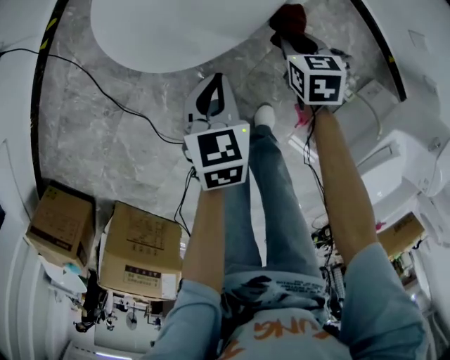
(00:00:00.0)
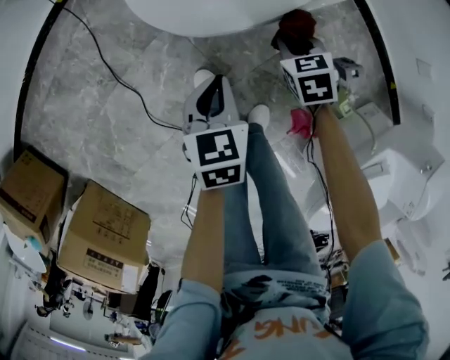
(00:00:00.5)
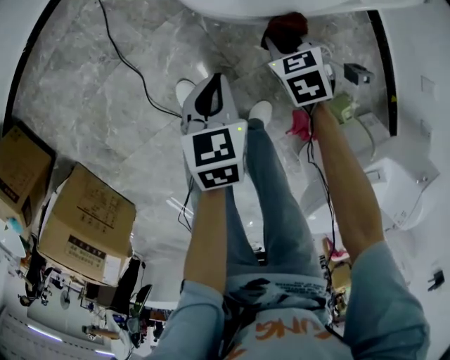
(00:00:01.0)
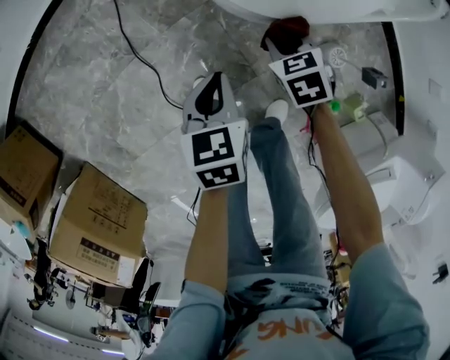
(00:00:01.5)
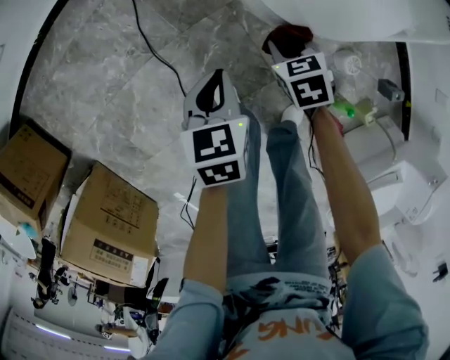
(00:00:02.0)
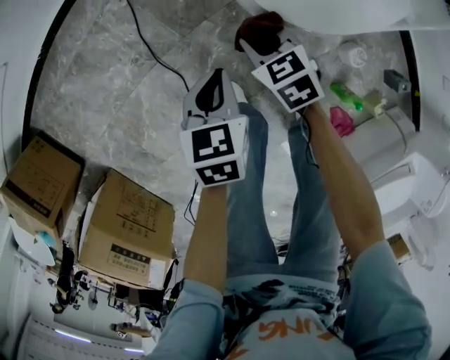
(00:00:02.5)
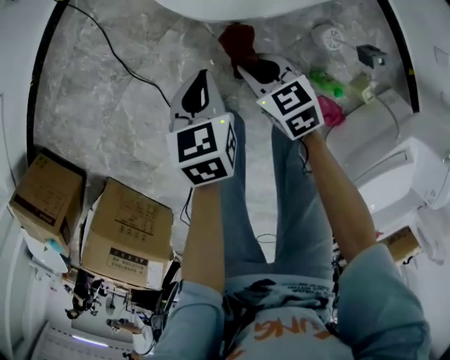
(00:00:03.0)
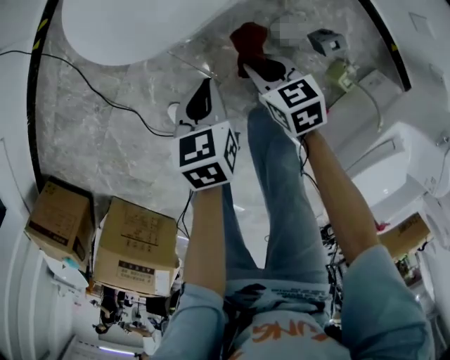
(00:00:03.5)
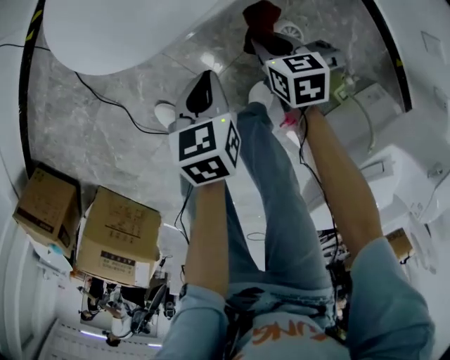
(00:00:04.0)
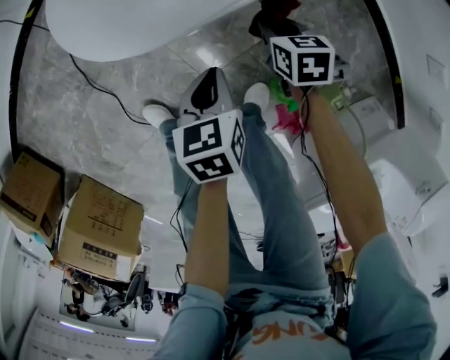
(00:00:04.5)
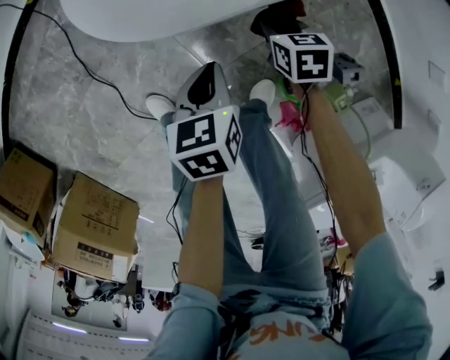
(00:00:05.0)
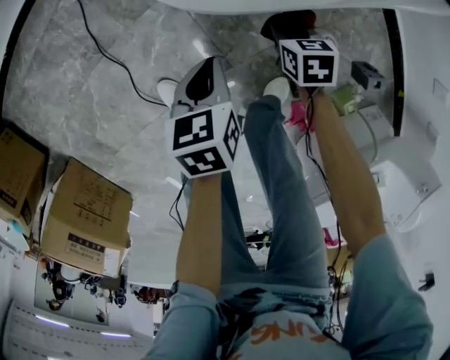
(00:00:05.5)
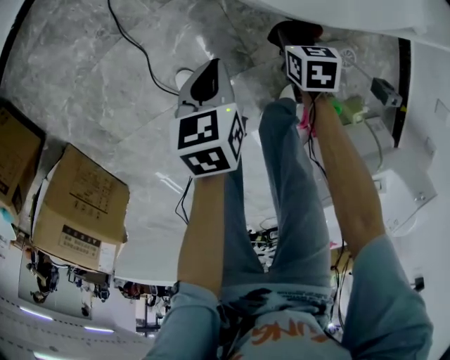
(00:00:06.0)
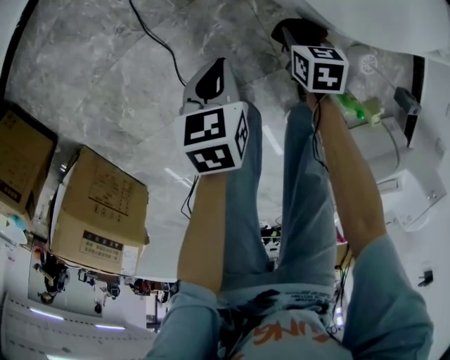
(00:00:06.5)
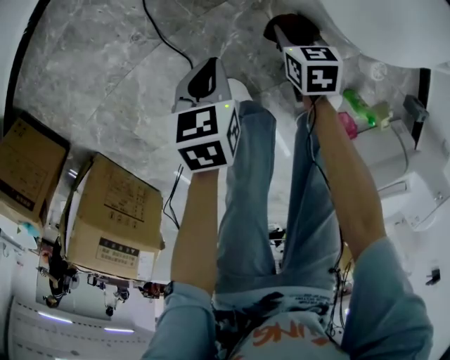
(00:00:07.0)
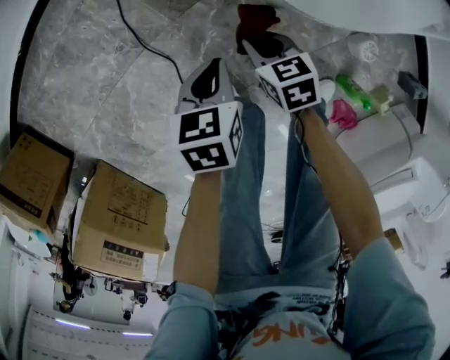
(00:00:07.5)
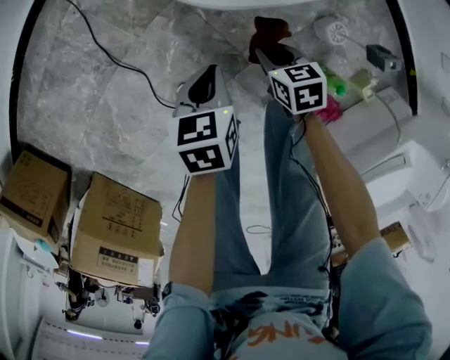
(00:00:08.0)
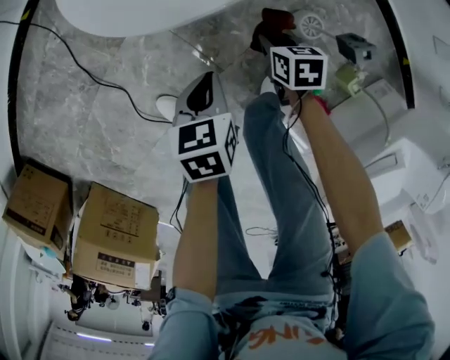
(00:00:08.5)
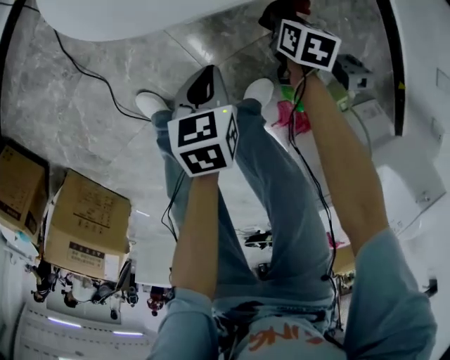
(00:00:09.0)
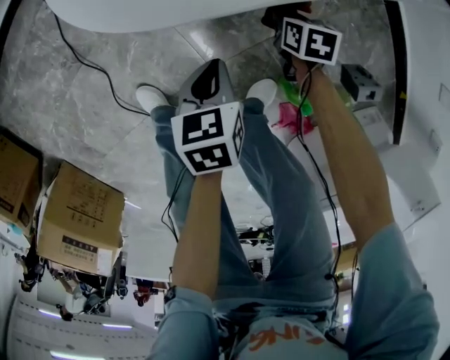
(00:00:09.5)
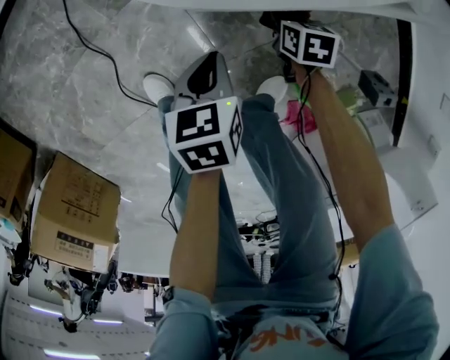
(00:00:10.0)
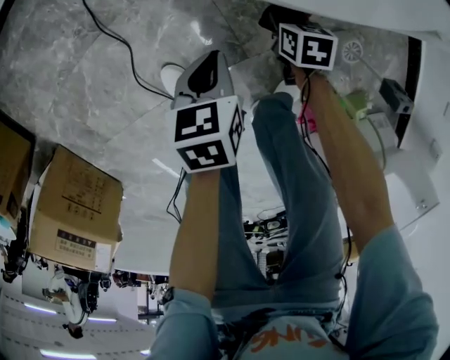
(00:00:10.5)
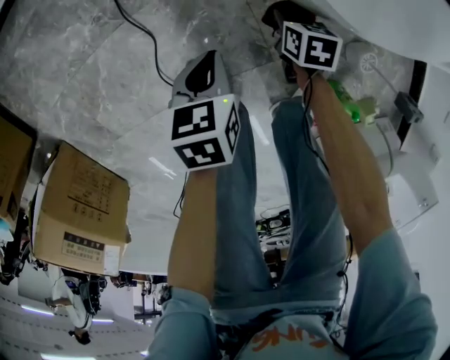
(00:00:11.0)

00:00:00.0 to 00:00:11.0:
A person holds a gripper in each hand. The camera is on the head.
00:00:00.0 to 00:00:02.0: The right gripper moves about 30 cm, and changes its angle by about 30 degrees. The left gripper ends up some 25 cm from where it was, and turns by approximately 20 degrees.
00:00:02.0 to 00:00:03.5: The left gripper travels to the right by some 30 cm, while the right gripper heads to the right and backward, covering about 25 cm, and swivels roughly 30 degrees.
00:00:03.5 to 00:00:05.5: The right gripper is displaced downward and forward by roughly 15 cm, and travels to the right and back again, about 10 cm each way. The left gripper moves to the left, some 10 cm.
00:00:05.5 to 00:00:07.5: The left gripper moves to the left, some 15 cm; the right gripper goes approximately 25 cm to the left.
00:00:07.5 to 00:00:09.0: The grippers both shift to the right by some 35 cm. The right gripper changes its angle by about 30 degrees.
00:00:09.0 to 00:00:11.0: The grippers both shift to the left by about 30 cm.

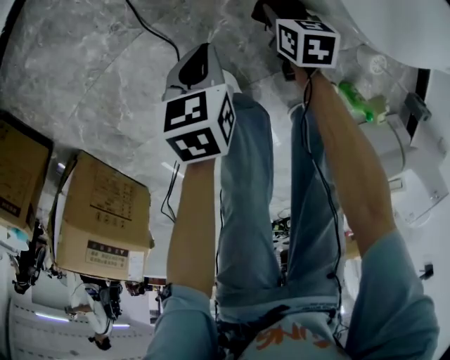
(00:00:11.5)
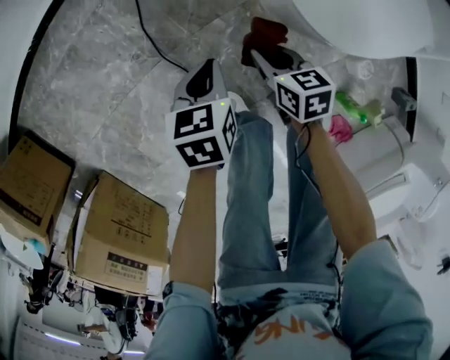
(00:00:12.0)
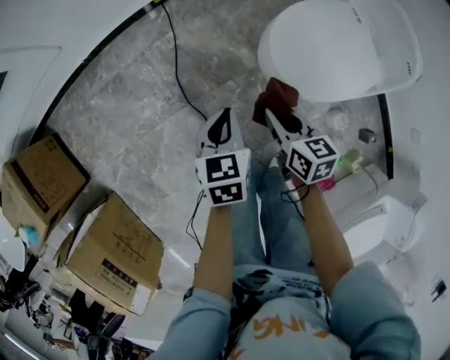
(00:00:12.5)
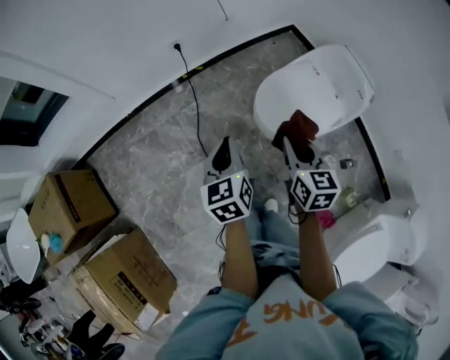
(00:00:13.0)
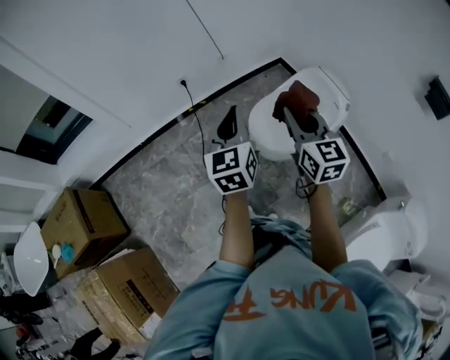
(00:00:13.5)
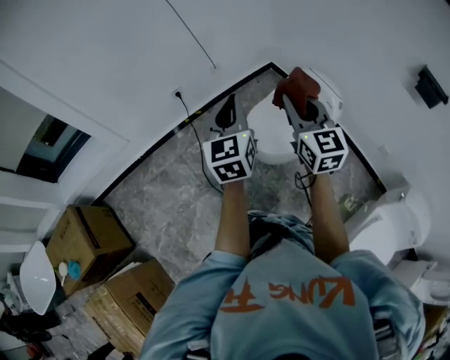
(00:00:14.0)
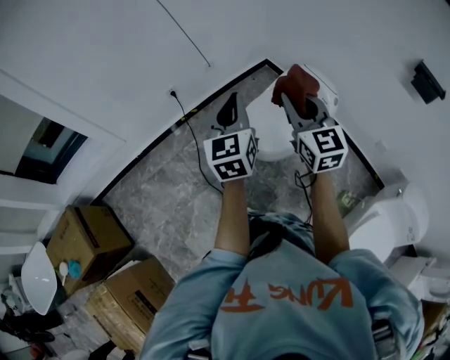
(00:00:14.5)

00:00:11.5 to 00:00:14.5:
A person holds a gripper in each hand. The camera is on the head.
00:00:11.5 to 00:00:13.0: The two grippers go approximately 60 cm upward. The right gripper points its fingers approximately 40 degrees further upward; the left gripper tips its fingers upward by about 30 degrees.
00:00:13.0 to 00:00:14.5: The right gripper is displaced upward by about 25 cm, and turns by roughly 30 degrees. The left gripper goes roughly 30 cm upward and to the right, and turns by about 30 degrees.

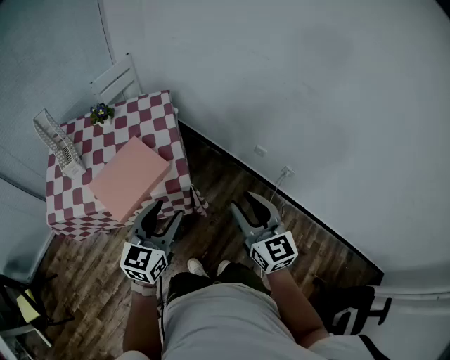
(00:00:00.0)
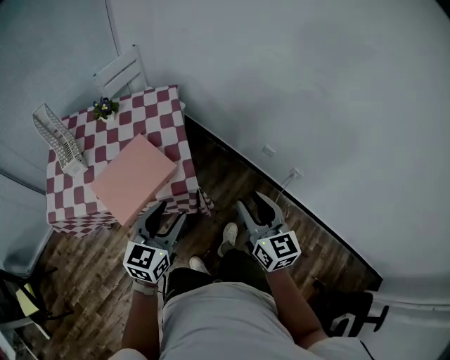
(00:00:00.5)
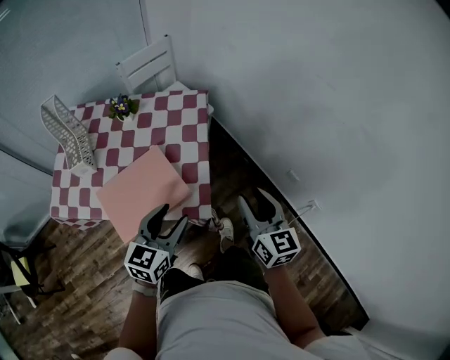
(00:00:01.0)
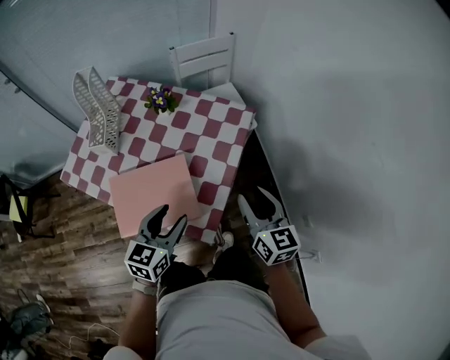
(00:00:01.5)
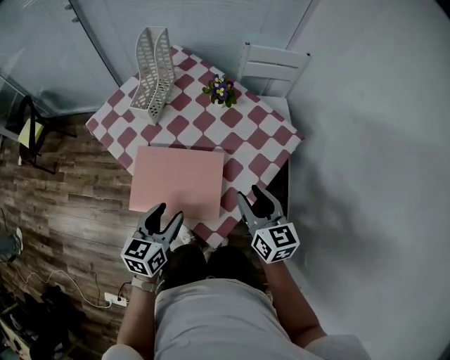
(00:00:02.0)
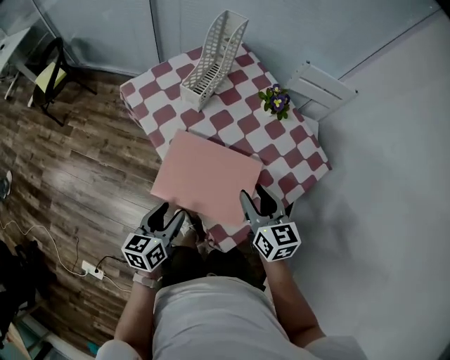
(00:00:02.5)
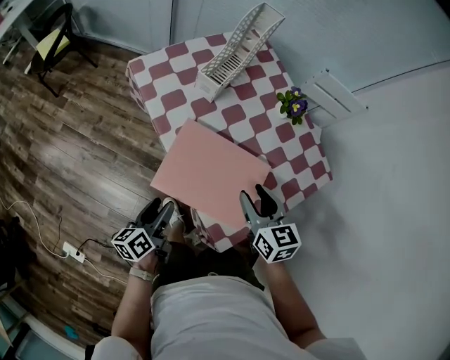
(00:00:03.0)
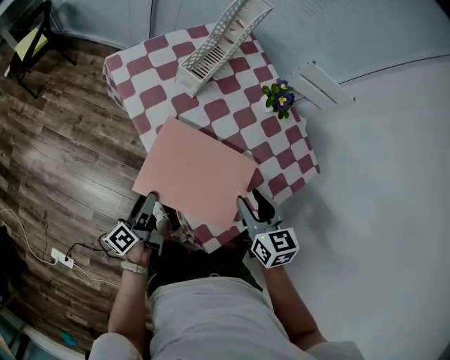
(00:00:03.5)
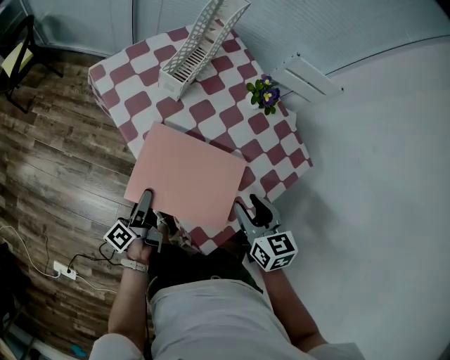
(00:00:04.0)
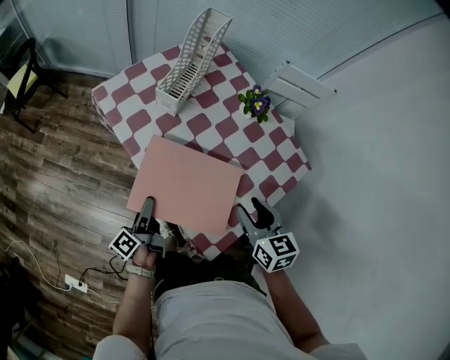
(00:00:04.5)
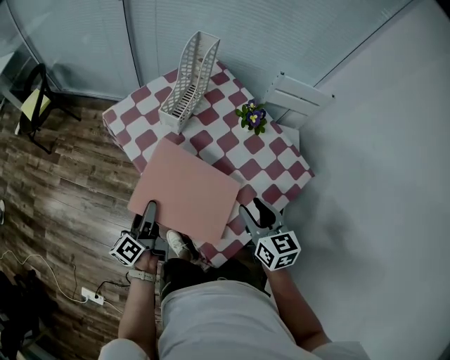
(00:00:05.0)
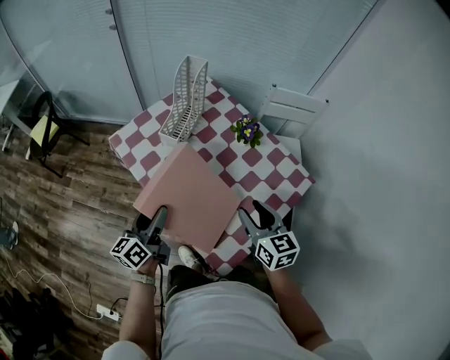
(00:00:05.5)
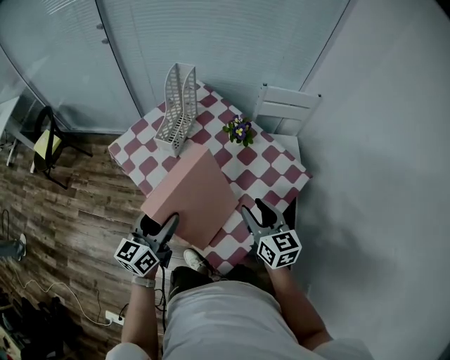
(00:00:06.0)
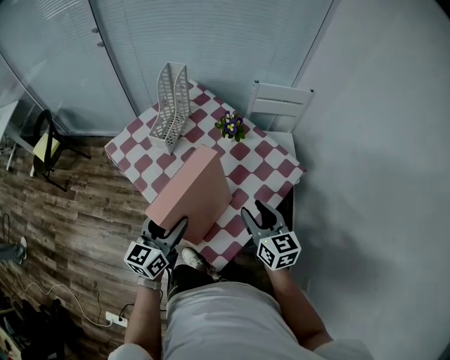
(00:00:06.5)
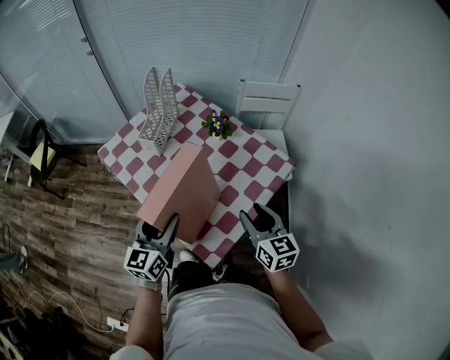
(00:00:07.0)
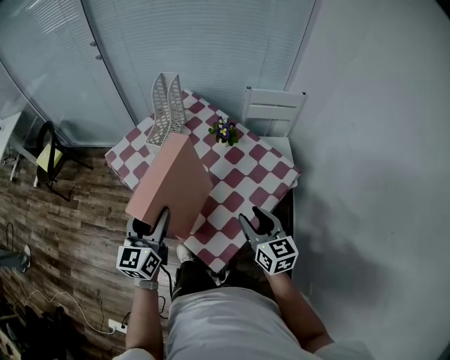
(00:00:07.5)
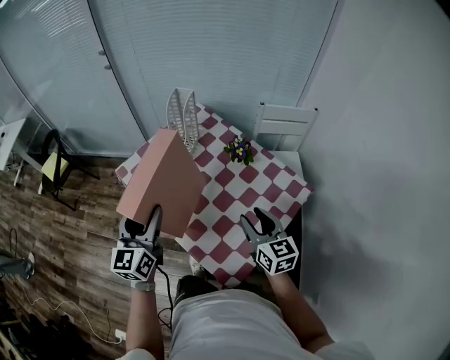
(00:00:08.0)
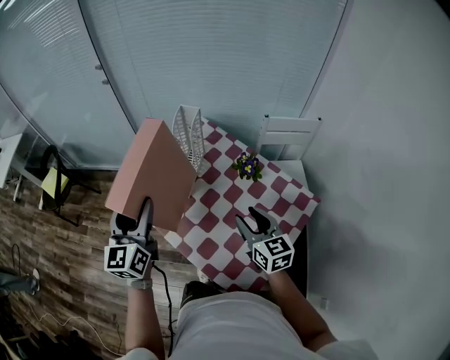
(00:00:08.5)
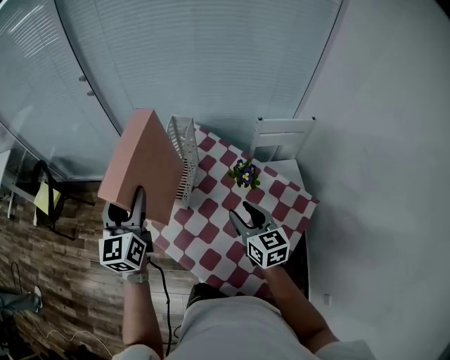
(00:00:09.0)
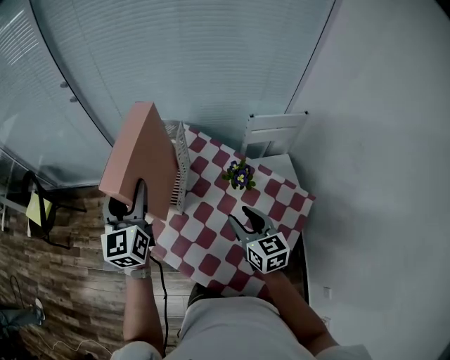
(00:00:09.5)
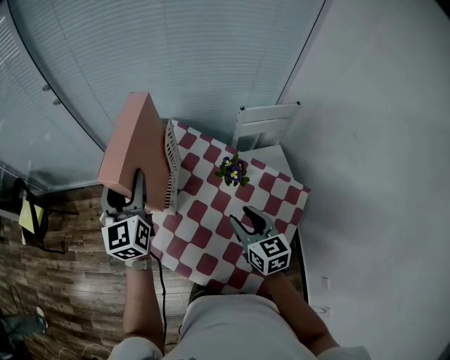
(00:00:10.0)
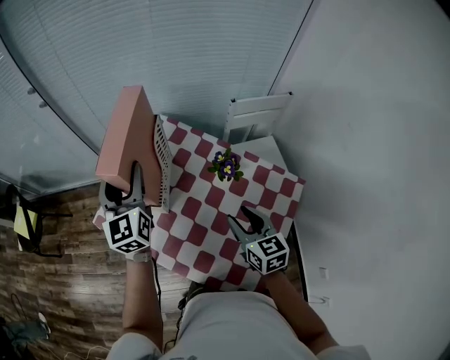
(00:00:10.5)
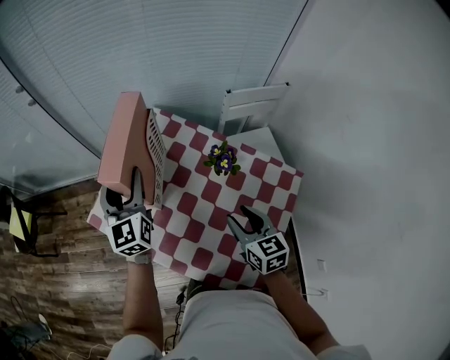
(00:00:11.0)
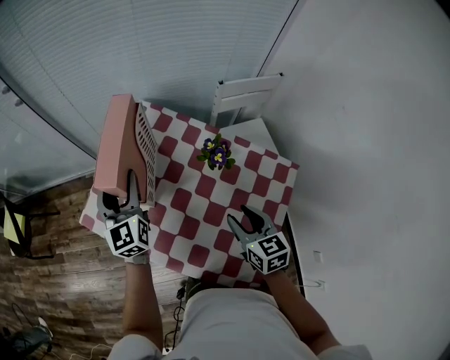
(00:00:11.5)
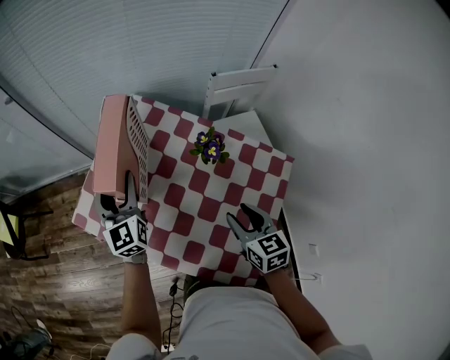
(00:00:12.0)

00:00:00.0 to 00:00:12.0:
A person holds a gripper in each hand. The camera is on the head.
00:00:00.0 to 00:00:02.0: The right gripper ends up about 40 cm from where it was, and swivels about 50 degrees. Meanwhile the left gripper shifts by some 25 cm, and rotates roughly 60 degrees.
00:00:02.0 to 00:00:04.0: The left gripper travels downward and to the left by approximately 20 cm, twists roughly 70 degrees counterclockwise, seen from behind, and opens. Meanwhile the right gripper heads to the left and downward, covering some 10 cm, and changes its angle by roughly 20 degrees.
00:00:04.0 to 00:00:06.0: The left gripper is displaced upward by about 20 cm, and twists some 70 degrees clockwise, seen from behind. The right gripper heads upward, covering approximately 10 cm, and swivels some 20 degrees.
00:00:06.0 to 00:00:08.0: The left gripper goes about 10 cm upward and to the left, and changes its angle by some 20 degrees; the right gripper travels backward and back again, approximately 5 cm each way.
00:00:08.0 to 00:00:10.0: The right gripper shifts about 15 cm forward, while the left gripper shifts some 25 cm forward.
00:00:10.0 to 00:00:12.0: The left gripper travels downward by roughly 15 cm, while the right gripper is displaced downward by approximately 5 cm.
